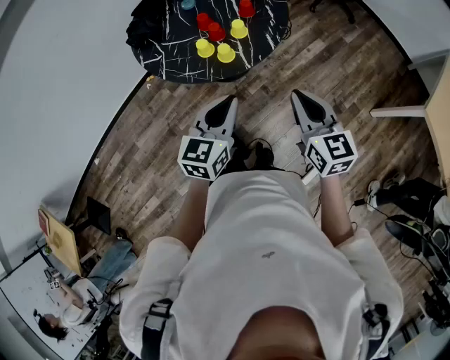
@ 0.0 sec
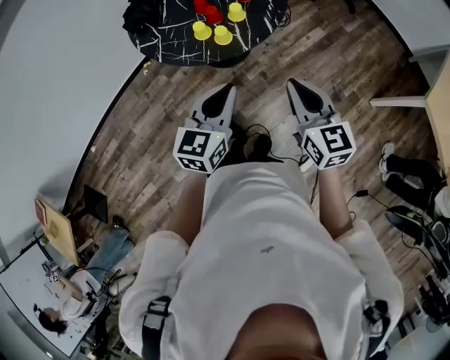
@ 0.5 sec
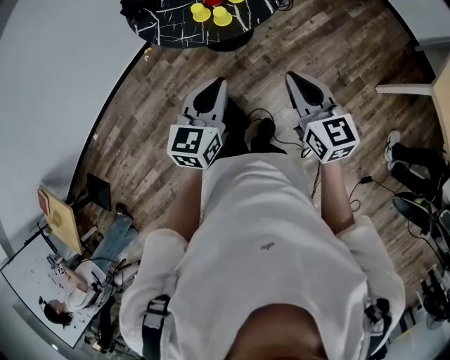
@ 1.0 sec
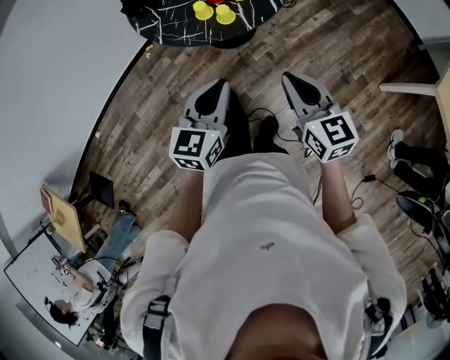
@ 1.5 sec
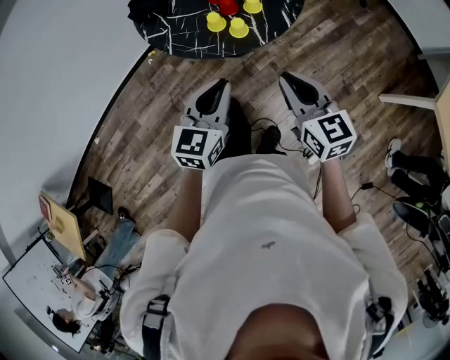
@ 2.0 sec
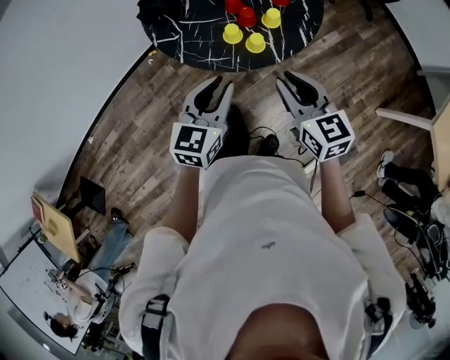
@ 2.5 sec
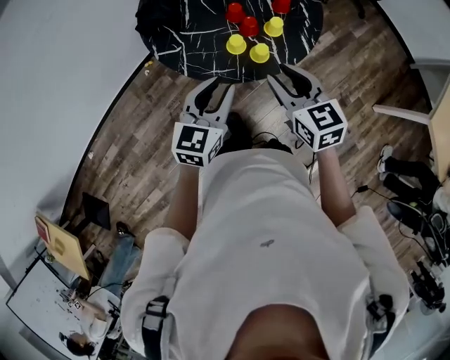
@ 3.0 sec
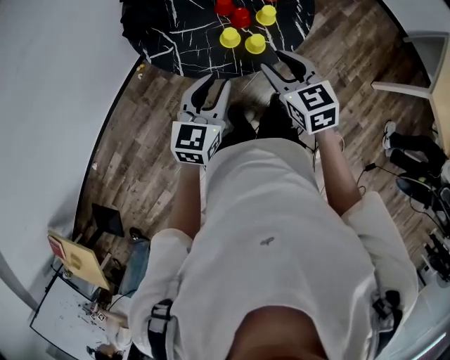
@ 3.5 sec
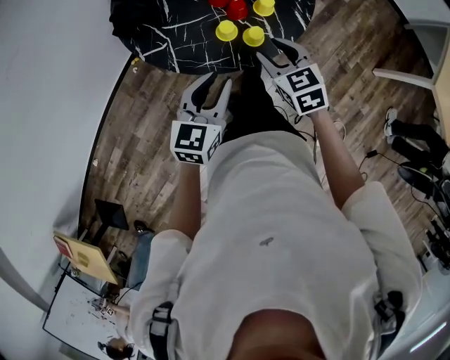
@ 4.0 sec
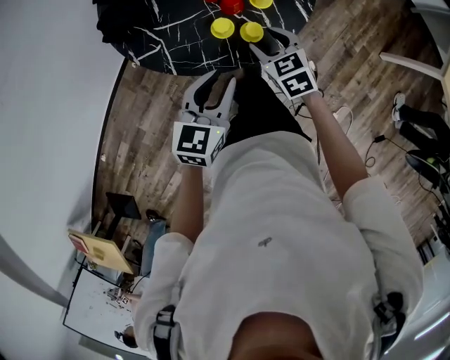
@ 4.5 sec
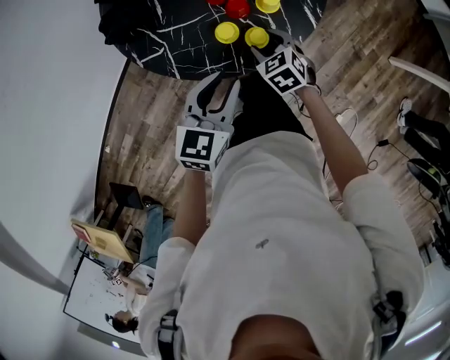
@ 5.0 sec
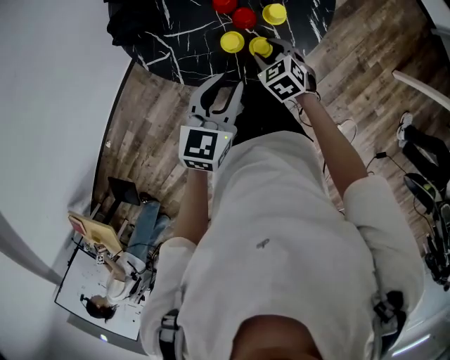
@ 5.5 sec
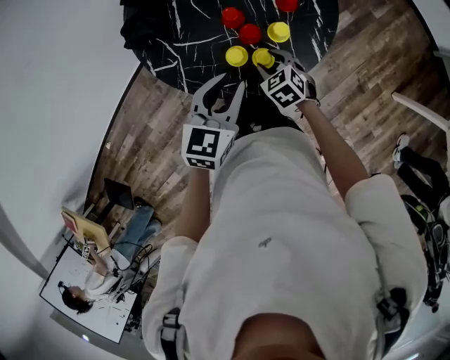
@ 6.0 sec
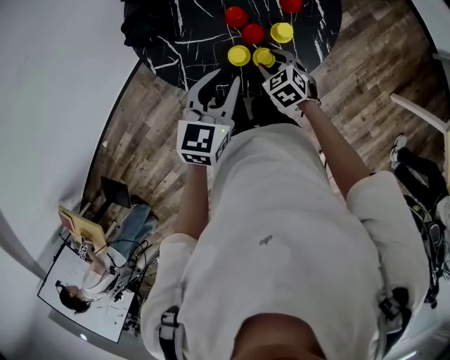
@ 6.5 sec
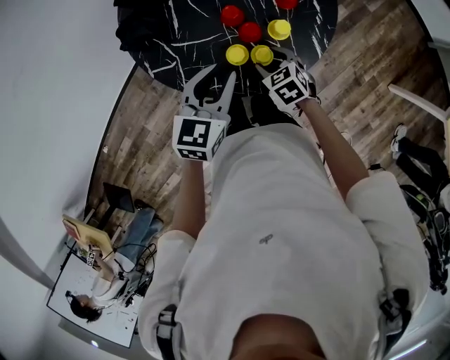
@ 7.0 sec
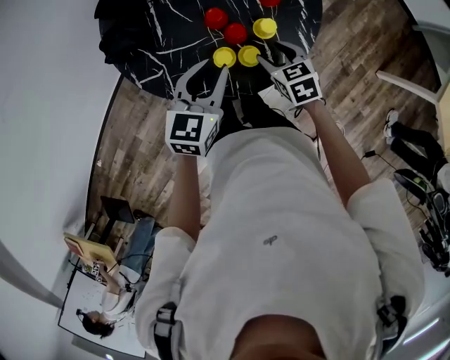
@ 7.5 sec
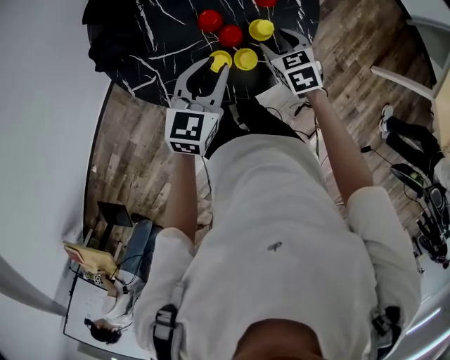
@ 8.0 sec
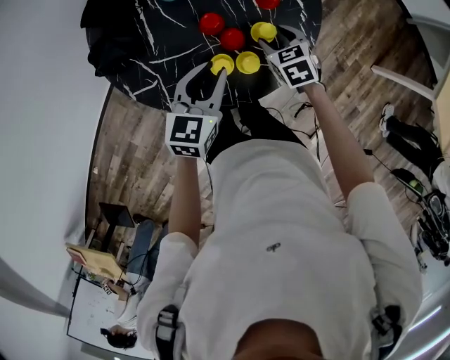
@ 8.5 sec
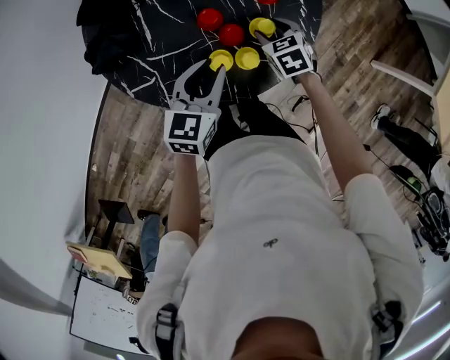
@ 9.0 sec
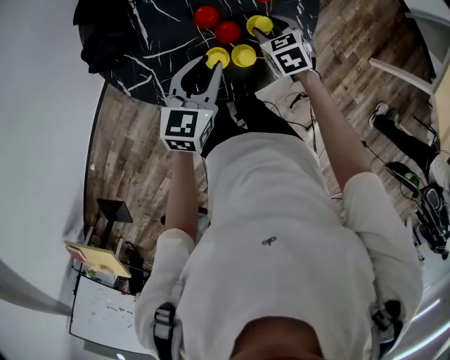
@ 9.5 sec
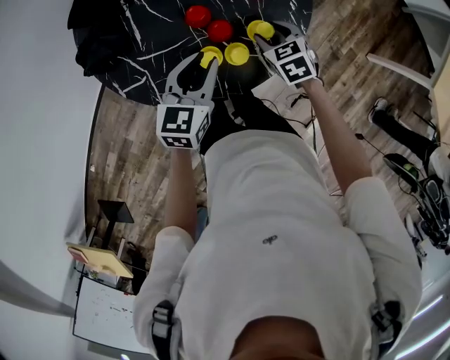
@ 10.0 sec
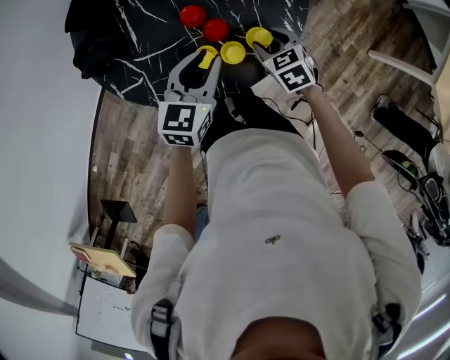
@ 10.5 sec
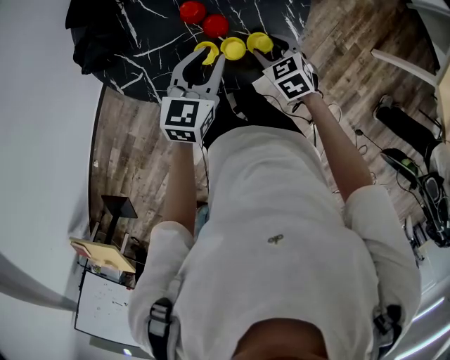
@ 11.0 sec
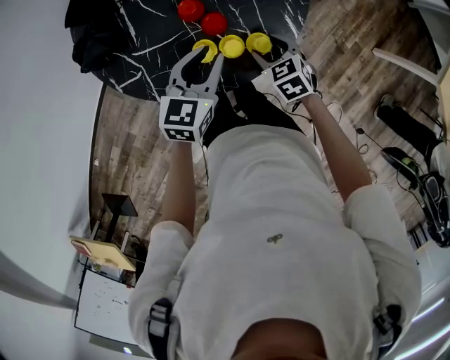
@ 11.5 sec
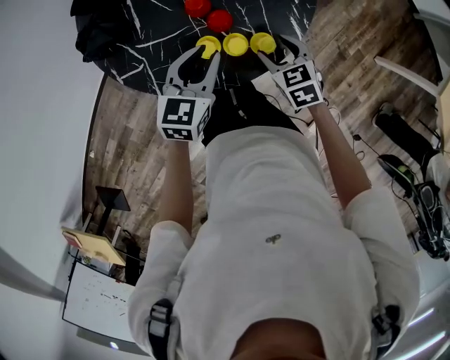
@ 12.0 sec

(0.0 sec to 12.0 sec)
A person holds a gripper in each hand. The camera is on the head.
0.0 sec - 2.0 sec: Both grippers travel together to the left, some 10 cm.
2.0 sec - 4.0 sec: The two grippers go approximately 20 cm forward, to the left and downward. The right gripper rotates approximately 20 degrees, and opens.
4.0 sec - 6.0 sec: The left gripper goes about 10 cm forward. The right gripper goes about 15 cm downward and forward, and rotates about 20 degrees.
6.0 sec - 8.0 sec: The right gripper travels forward and to the right by approximately 10 cm, while the left gripper moves forward, roughly 5 cm.
8.0 sec - 10.0 sec: The grippers stay close to where they were, moving slightly.
10.0 sec - 12.0 sec: The right gripper is displaced backward by roughly 5 cm.

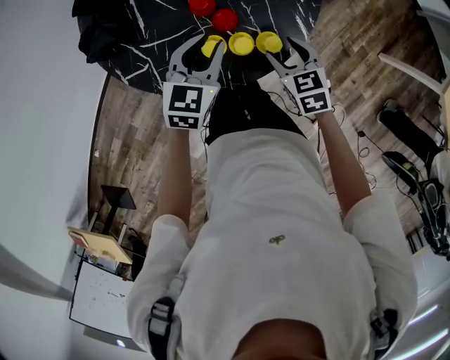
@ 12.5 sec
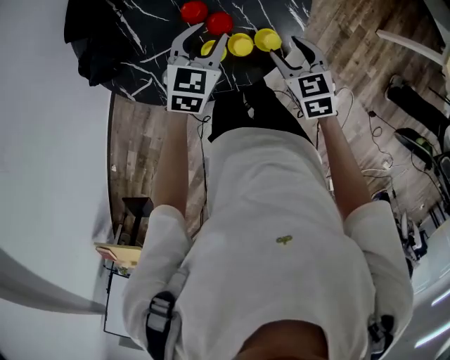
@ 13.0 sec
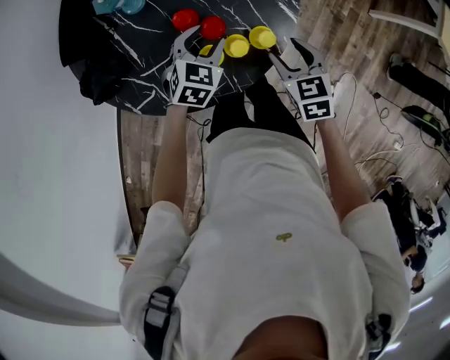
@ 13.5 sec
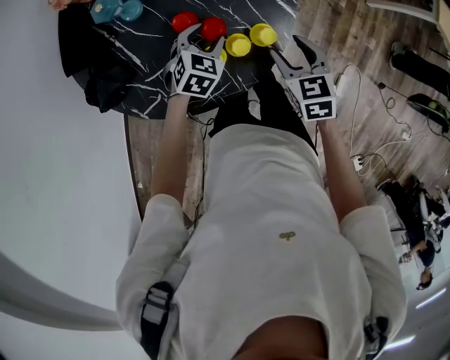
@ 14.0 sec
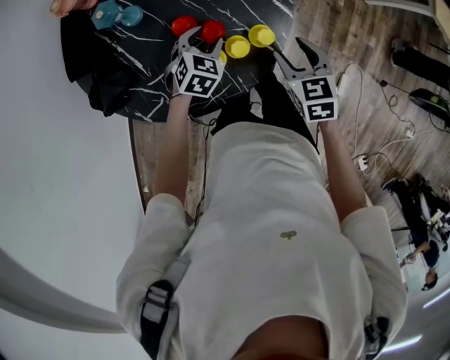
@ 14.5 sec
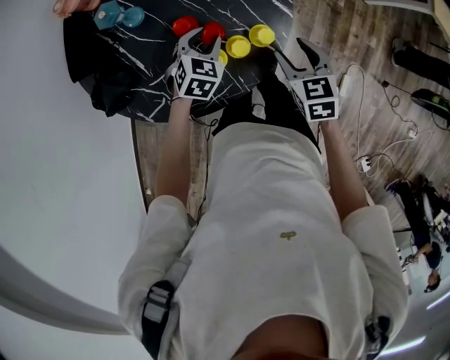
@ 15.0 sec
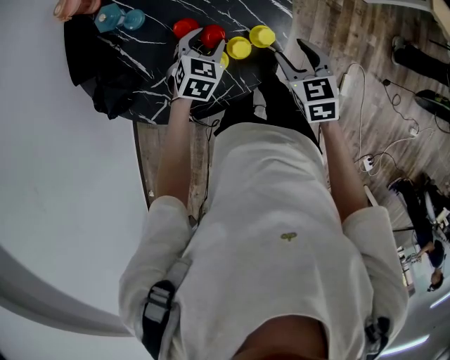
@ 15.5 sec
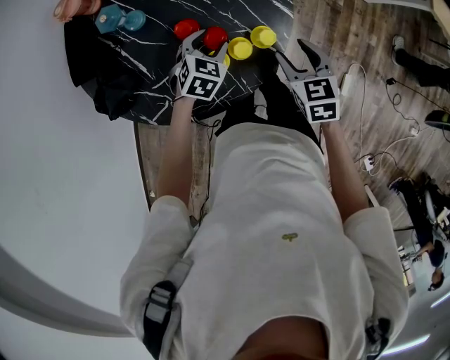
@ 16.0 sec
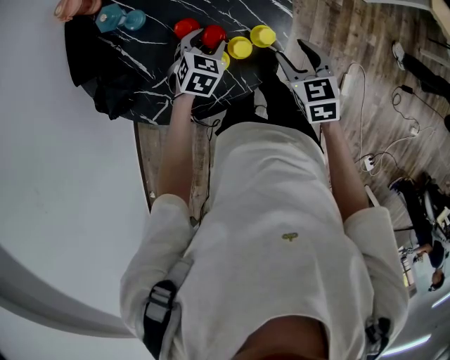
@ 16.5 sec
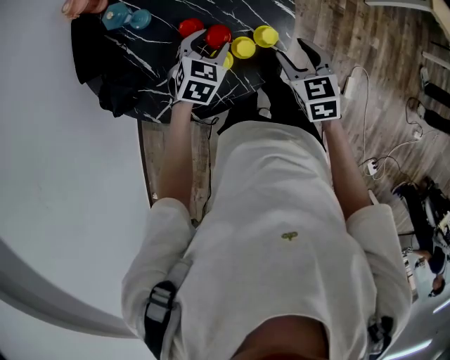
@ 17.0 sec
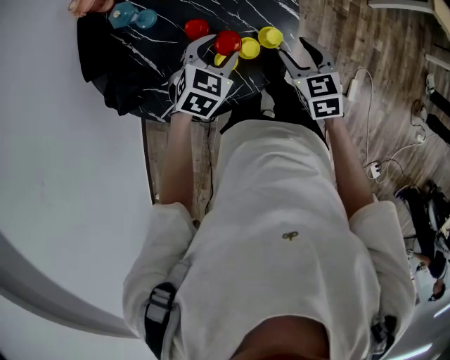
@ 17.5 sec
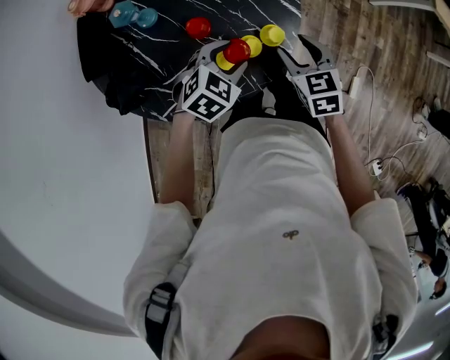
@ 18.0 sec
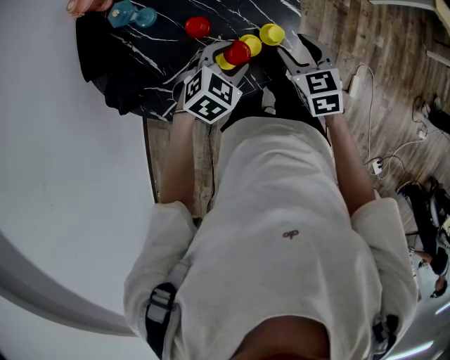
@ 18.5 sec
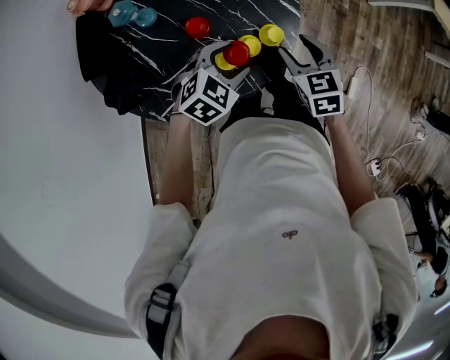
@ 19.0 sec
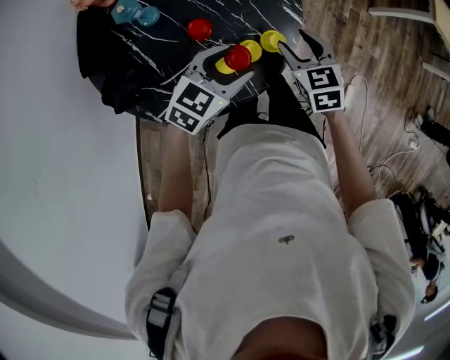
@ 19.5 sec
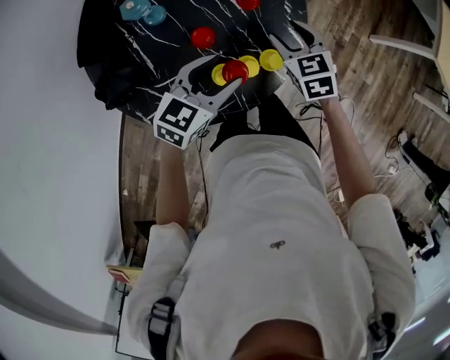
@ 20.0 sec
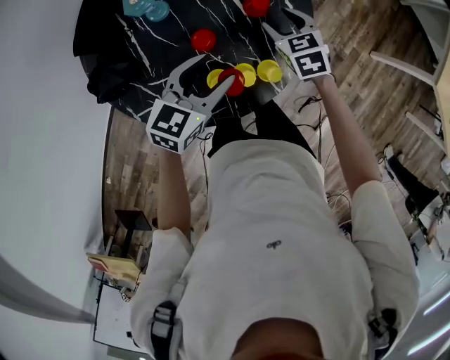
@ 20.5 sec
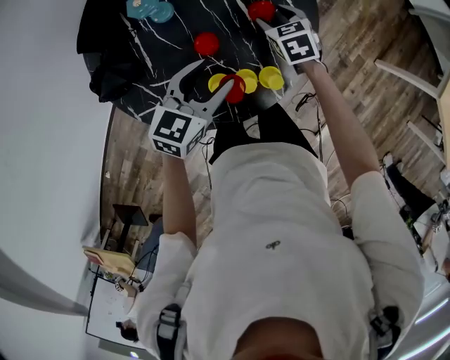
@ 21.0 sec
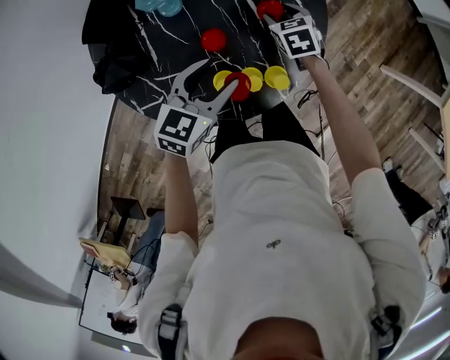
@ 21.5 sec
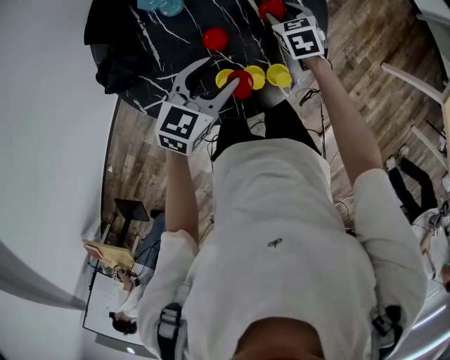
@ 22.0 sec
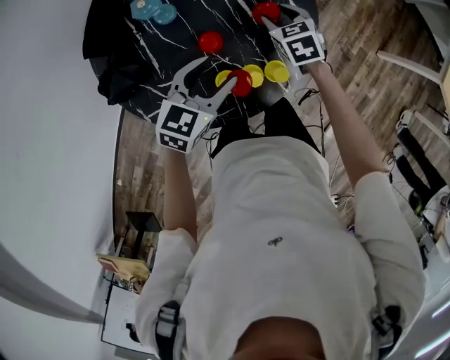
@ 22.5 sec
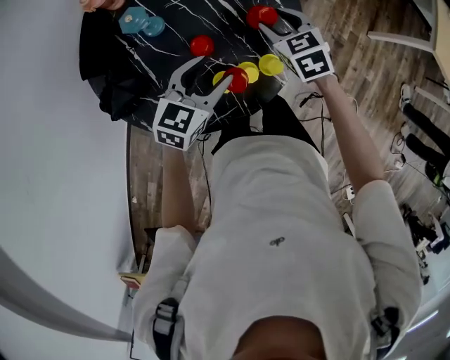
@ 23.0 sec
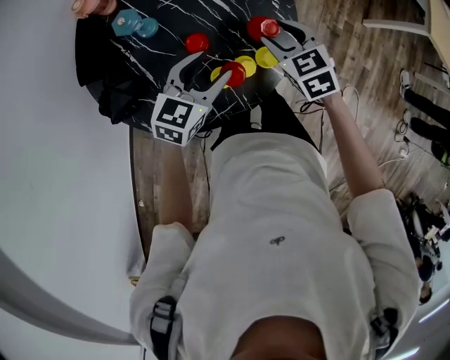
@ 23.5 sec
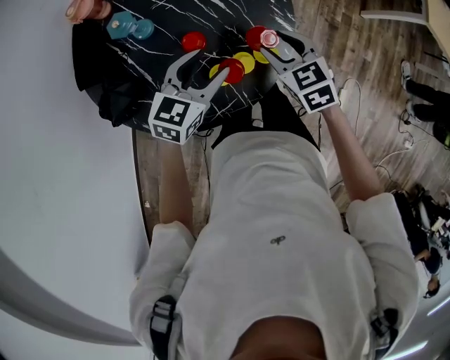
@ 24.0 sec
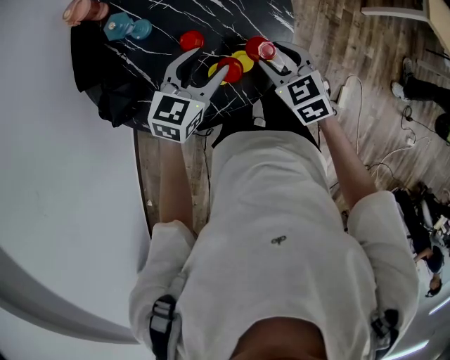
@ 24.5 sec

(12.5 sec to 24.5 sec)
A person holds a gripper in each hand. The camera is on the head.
12.5 sec - 14.5 sec: The left gripper heads downward, covering roughly 10 cm, changes its angle by about 40 degrees, and opens. Meanwhile the right gripper moves about 5 cm, and turns by about 30 degrees.
14.5 sec - 16.5 sec: The grippers stay close to where they were, moving slightly.
16.5 sec - 18.5 sec: The left gripper heads upward and backward, covering approximately 10 cm, and turns by approximately 20 degrees.
18.5 sec - 20.5 sec: The right gripper travels forward and to the left by approximately 20 cm, and changes its angle by about 20 degrees, while the left gripper heads upward and to the left, covering approximately 10 cm, and changes its angle by some 50 degrees.
22.5 sec - 24.5 sec: The right gripper travels backward by some 15 cm.

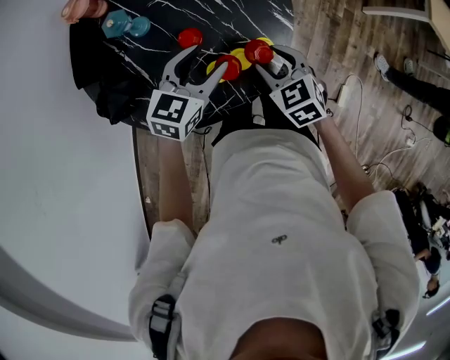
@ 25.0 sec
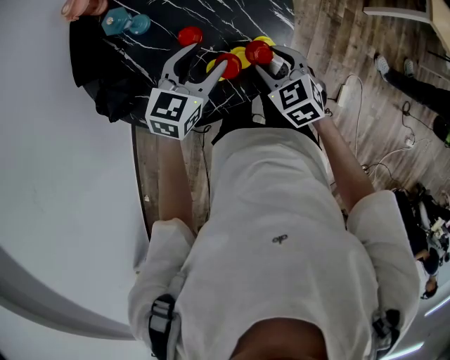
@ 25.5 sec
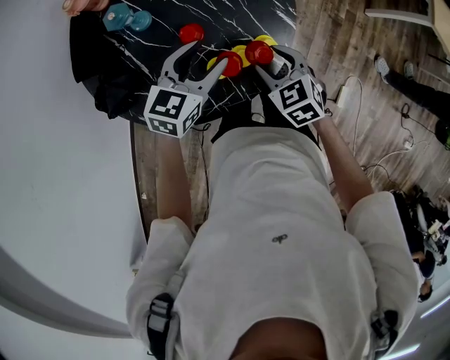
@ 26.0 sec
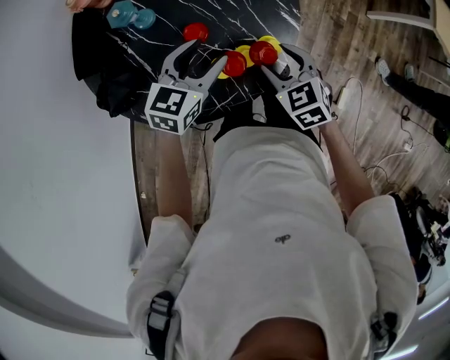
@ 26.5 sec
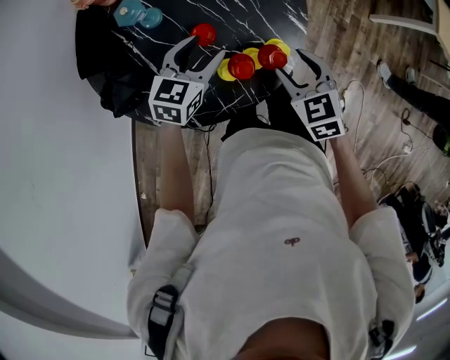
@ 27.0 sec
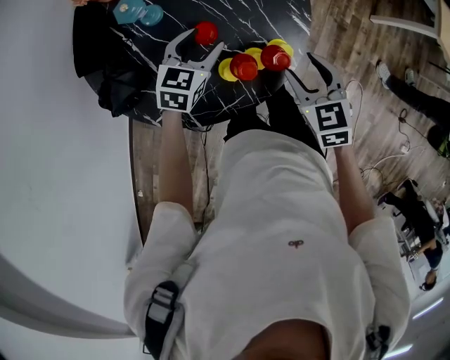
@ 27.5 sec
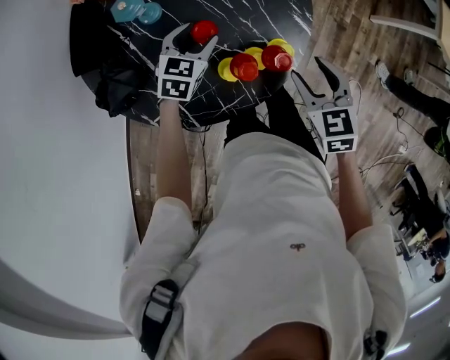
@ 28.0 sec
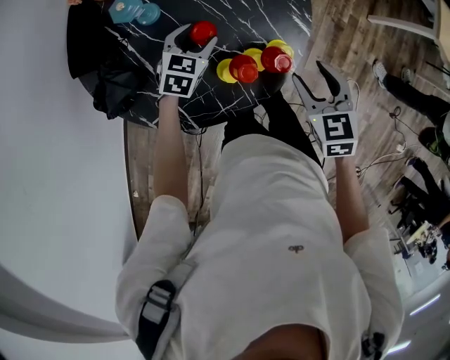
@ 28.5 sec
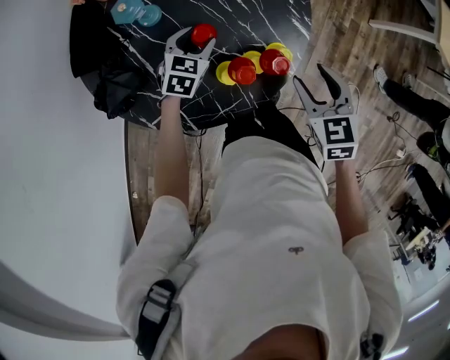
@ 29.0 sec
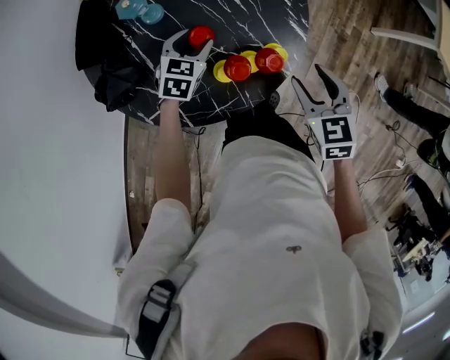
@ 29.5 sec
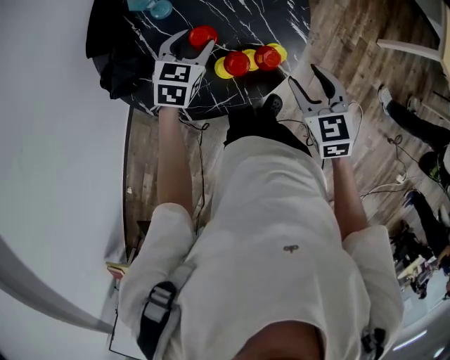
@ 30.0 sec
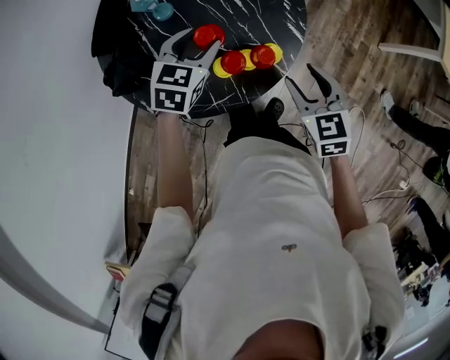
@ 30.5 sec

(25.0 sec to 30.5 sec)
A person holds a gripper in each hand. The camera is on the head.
25.0 sec - 27.0 sec: The left gripper ends up some 5 cm from where it was.
27.0 sec - 28.5 sec: The left gripper goes some 10 cm downward.
28.5 sec - 30.5 sec: The right gripper moves roughly 5 cm. Meanwhile the left gripper moves upward, some 15 cm.
